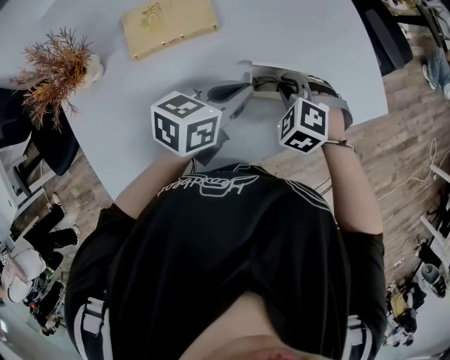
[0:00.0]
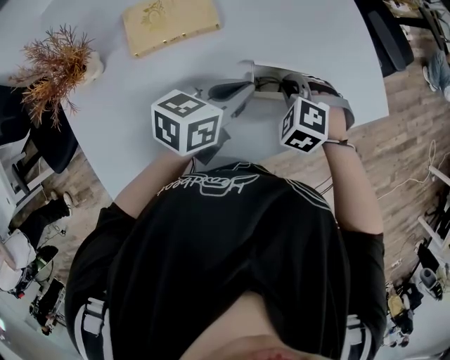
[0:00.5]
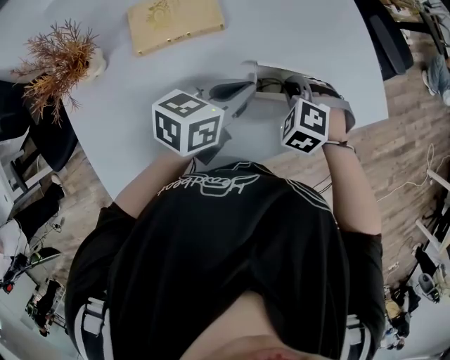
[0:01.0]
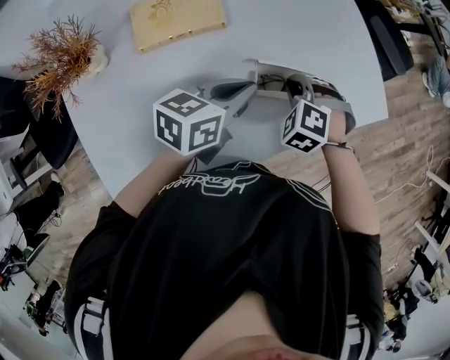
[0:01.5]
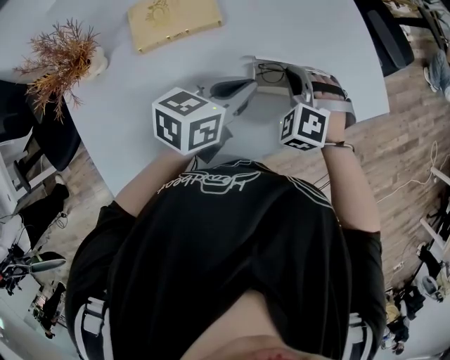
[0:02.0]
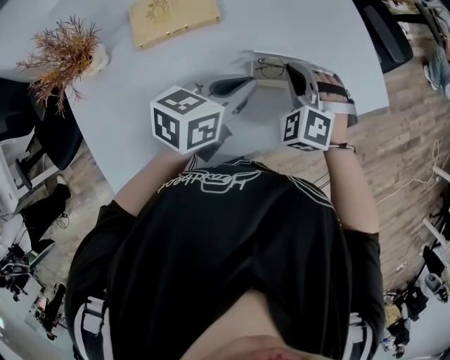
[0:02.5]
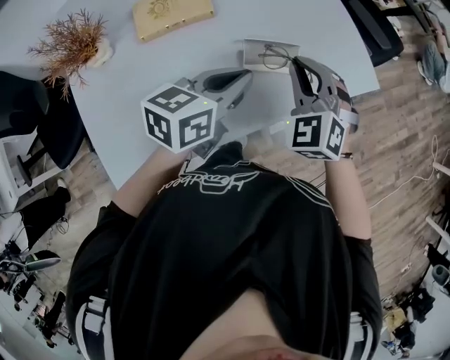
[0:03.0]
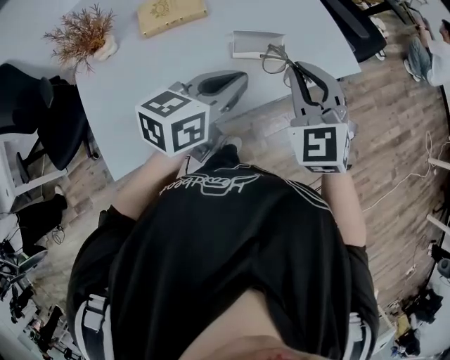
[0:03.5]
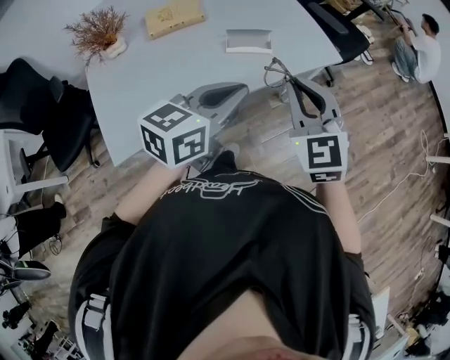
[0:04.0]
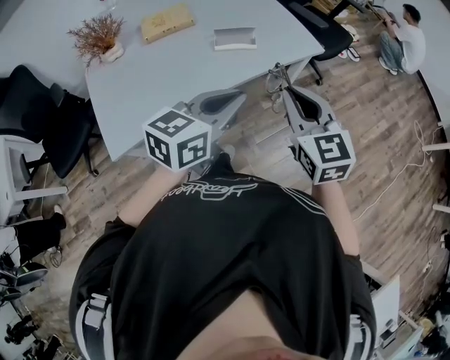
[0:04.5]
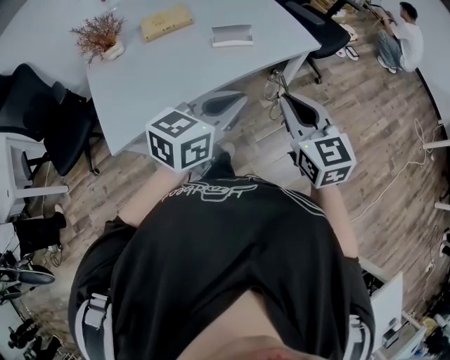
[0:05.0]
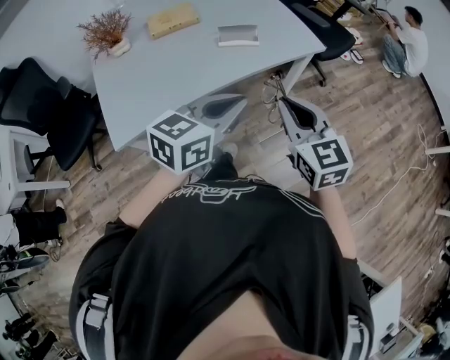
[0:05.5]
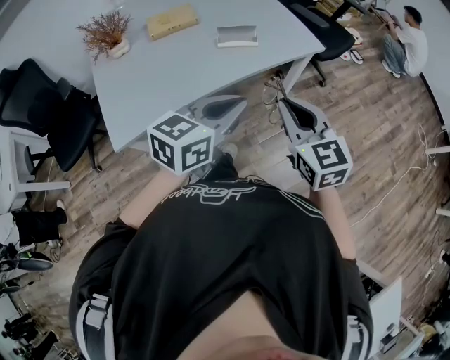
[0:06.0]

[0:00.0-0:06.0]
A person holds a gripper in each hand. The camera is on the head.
0:00.0 to 0:02.0: The grippers move only a little.
0:02.0 to 0:04.0: Both grippers travel together backward, upward and to the right, roughly 35 cm. The left gripper changes its angle by approximately 20 degrees. Meanwhile the right gripper rolls clockwise, seen from behind, by about 50 degrees.
0:04.0 to 0:06.0: The grippers both shift backward and to the right by roughly 15 cm. The right gripper turns by about 20 degrees.

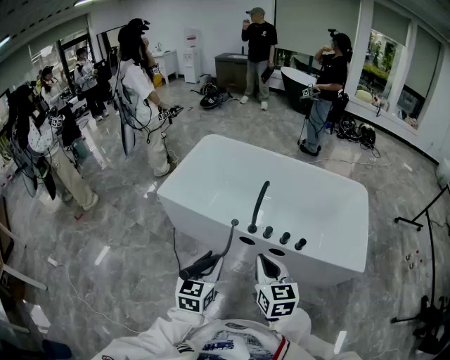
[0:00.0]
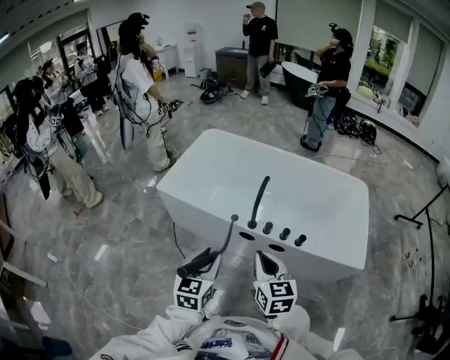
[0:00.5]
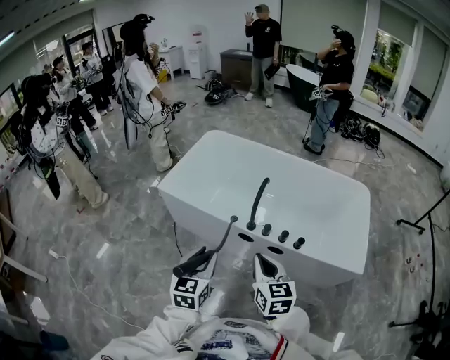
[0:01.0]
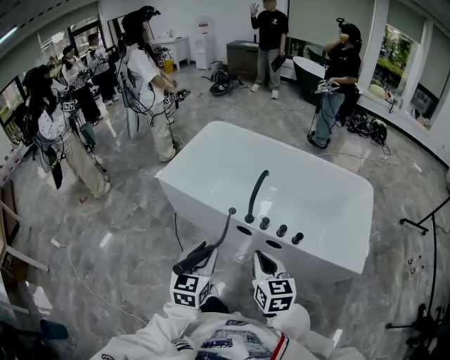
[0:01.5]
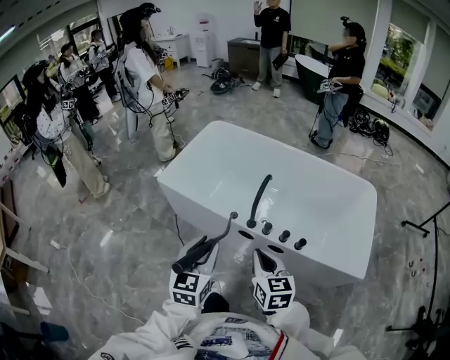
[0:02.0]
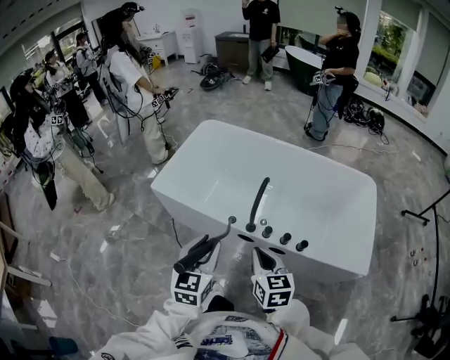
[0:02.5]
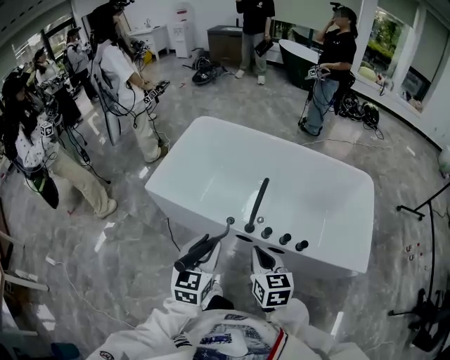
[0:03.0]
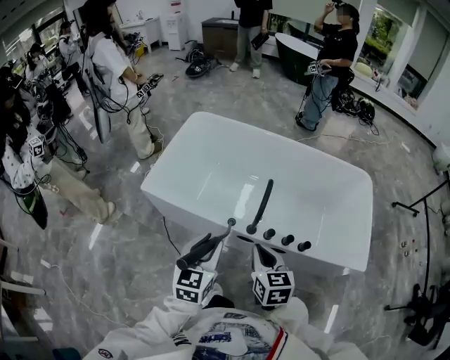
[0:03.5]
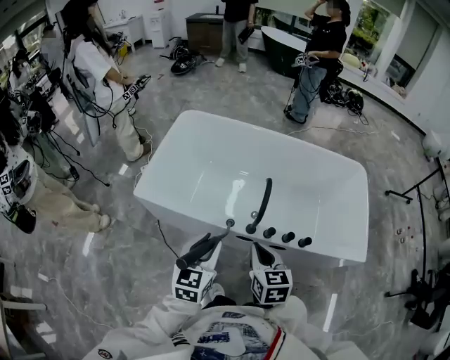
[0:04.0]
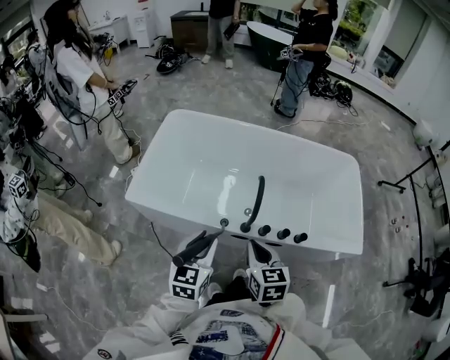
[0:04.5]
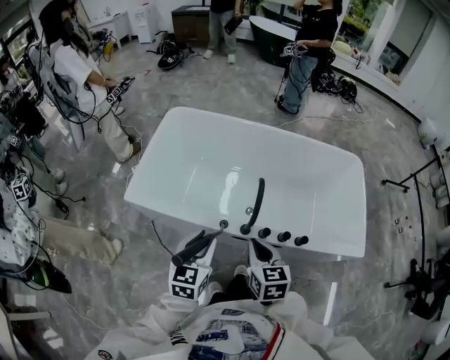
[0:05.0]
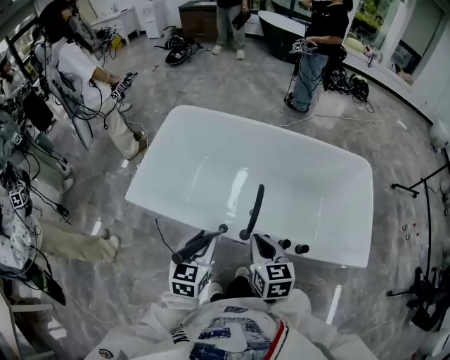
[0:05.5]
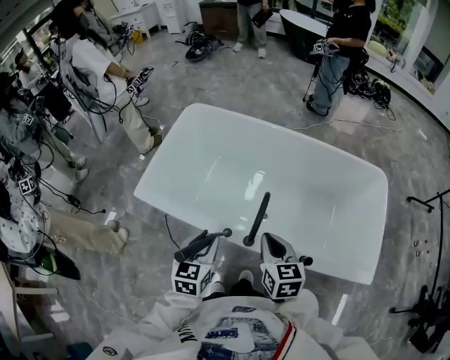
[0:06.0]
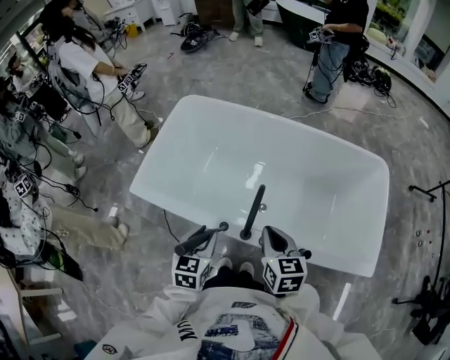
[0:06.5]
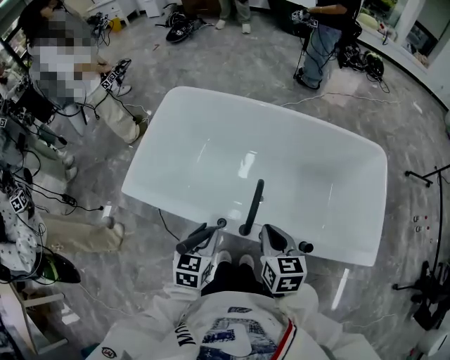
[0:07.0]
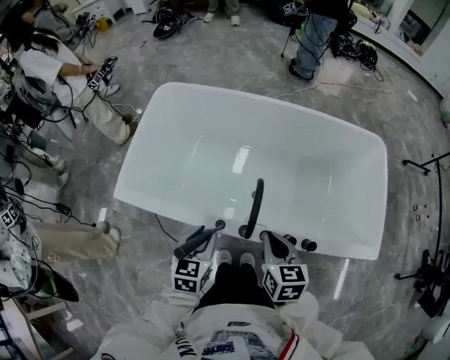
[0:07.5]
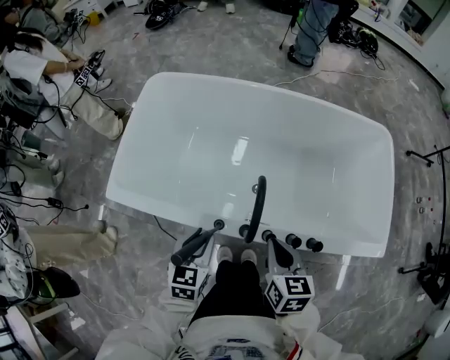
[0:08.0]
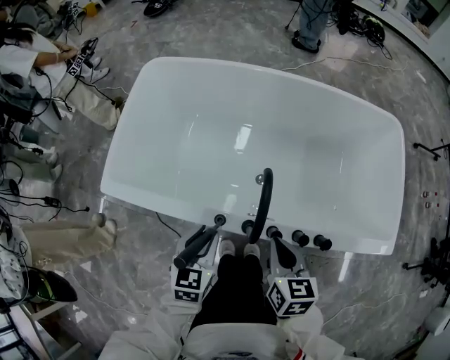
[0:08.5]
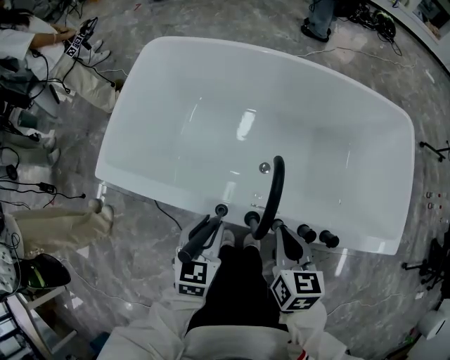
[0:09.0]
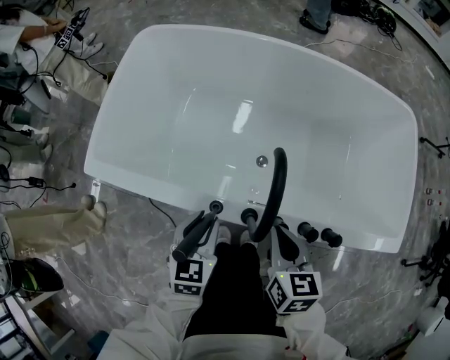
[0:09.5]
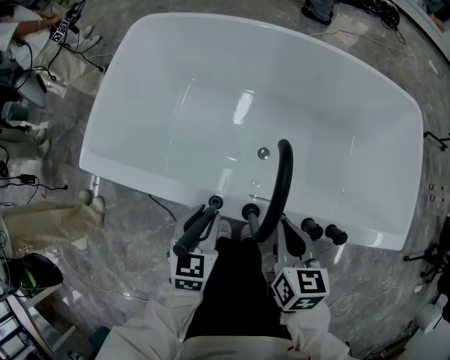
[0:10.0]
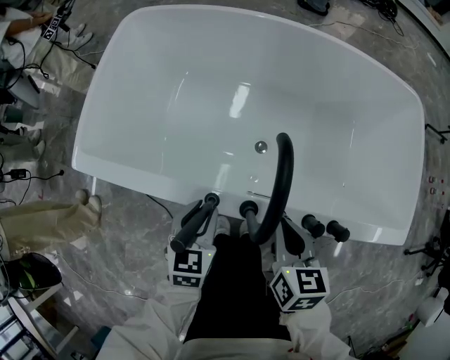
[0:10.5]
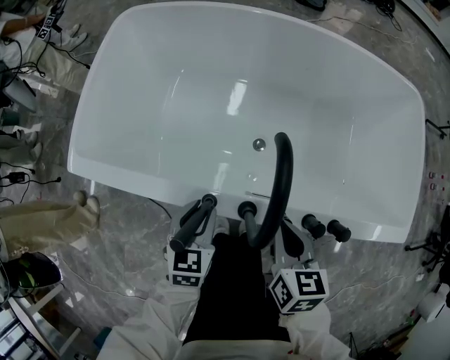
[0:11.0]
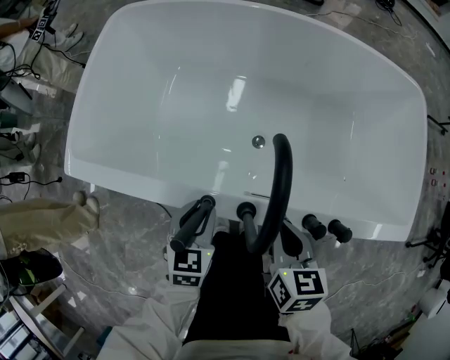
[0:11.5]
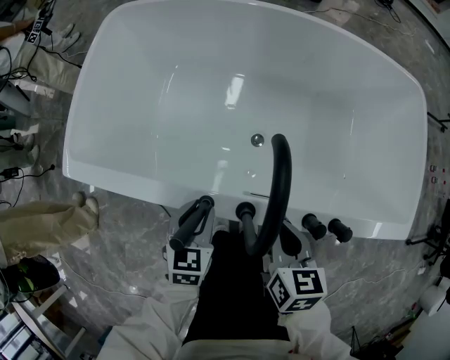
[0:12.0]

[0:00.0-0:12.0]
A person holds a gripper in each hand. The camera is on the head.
0:00.0 to 0:02.0: The right gripper ends up some 5 cm from where it was. The left gripper changes place by approximately 5 cm.
0:02.0 to 0:04.0: The left gripper heads forward, downward and to the left, covering some 15 cm, while the right gripper moves forward and to the left, roughly 15 cm.
0:04.0 to 0:06.0: The right gripper heads forward and to the right, covering about 15 cm, while the left gripper goes roughly 10 cm forward and downward.
0:06.0 to 0:08.0: Both grippers move downward, some 10 cm.
0:08.0 to 0:10.0: Both grippers move downward, about 10 cm.
0:10.0 to 0:12.0: The left gripper moves downward, approximately 5 cm.

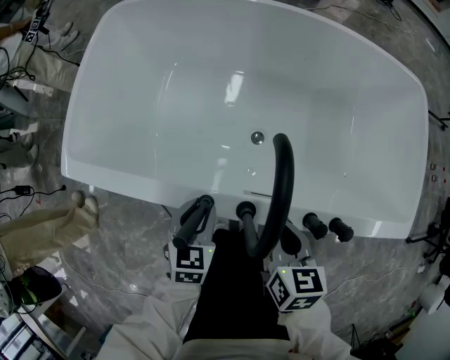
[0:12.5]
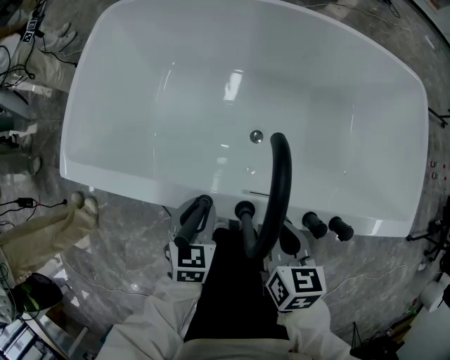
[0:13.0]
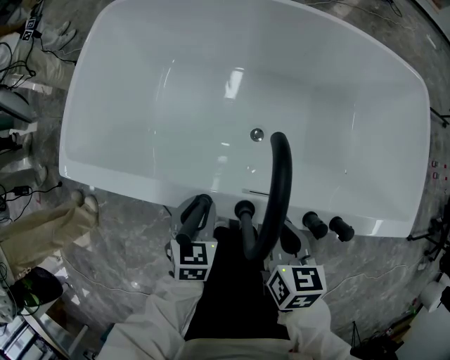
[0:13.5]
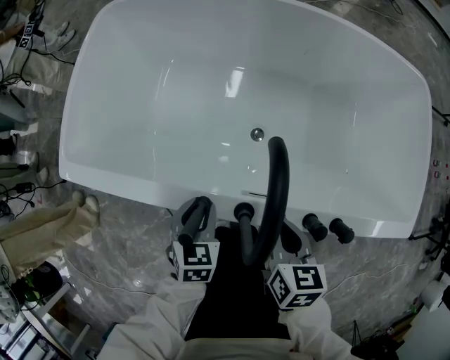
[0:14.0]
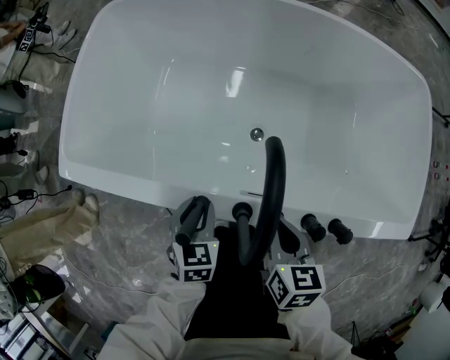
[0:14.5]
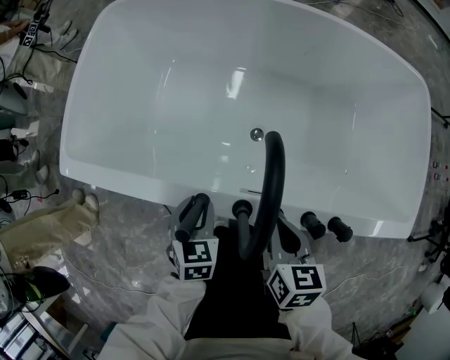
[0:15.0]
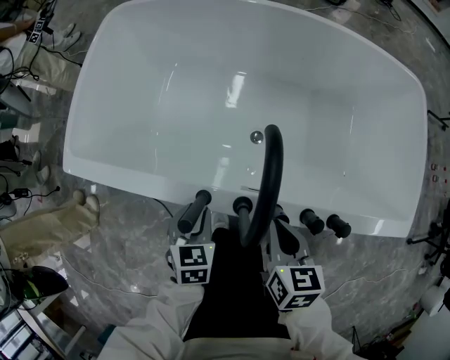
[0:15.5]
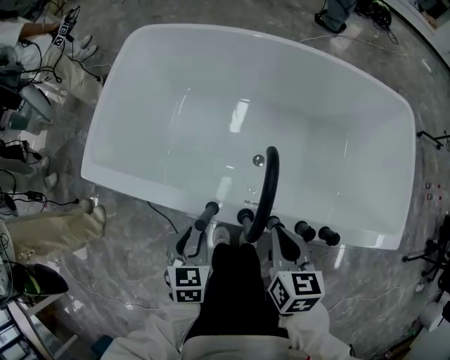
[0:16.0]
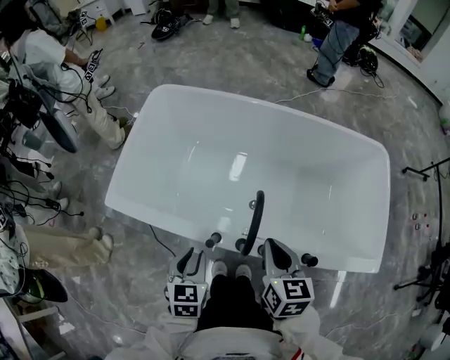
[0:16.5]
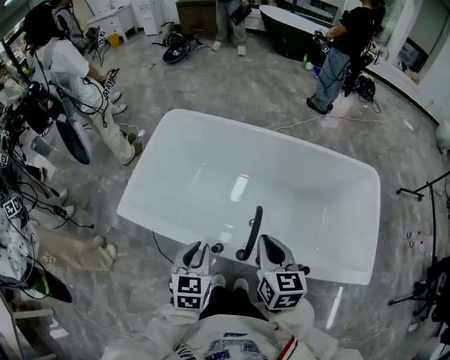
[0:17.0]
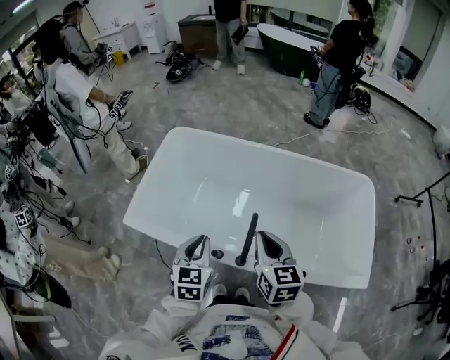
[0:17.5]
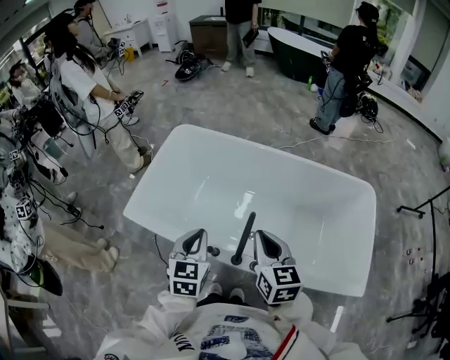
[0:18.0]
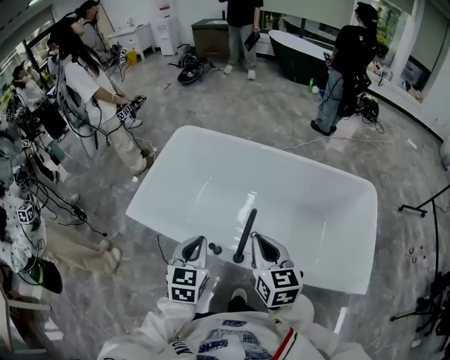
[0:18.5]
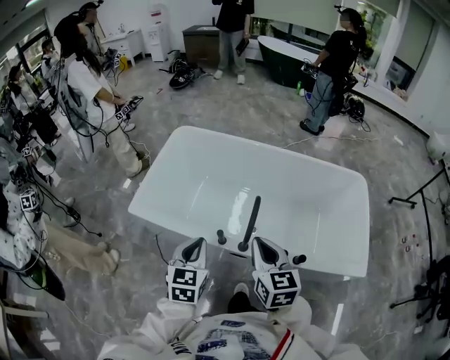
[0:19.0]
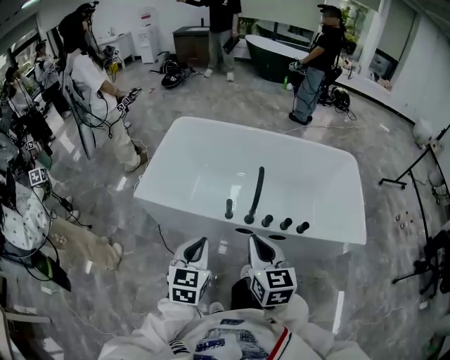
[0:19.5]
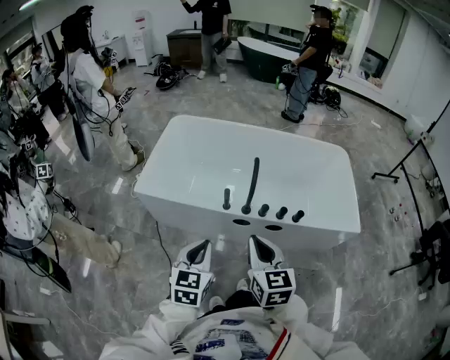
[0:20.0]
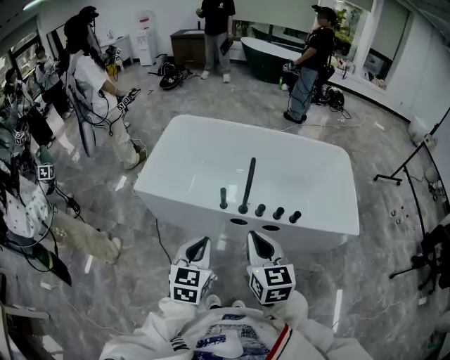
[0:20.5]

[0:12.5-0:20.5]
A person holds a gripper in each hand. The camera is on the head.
0:12.5 to 0:14.5: The grippers move only a little.
0:14.5 to 0:16.5: The grippers both shift upward by roughly 20 cm.
0:16.5 to 0:18.5: Both grippers move upward, roughly 15 cm. The left gripper closes up.
0:18.5 to 0:20.5: The grippers both shift backward by roughly 25 cm.

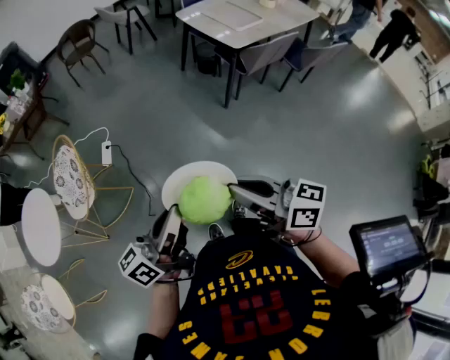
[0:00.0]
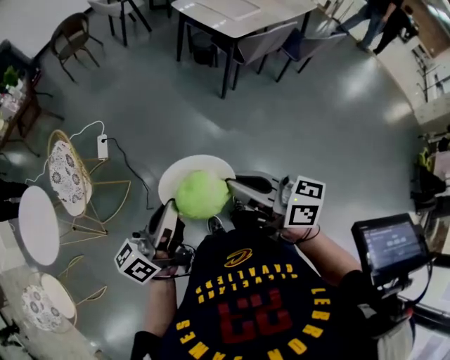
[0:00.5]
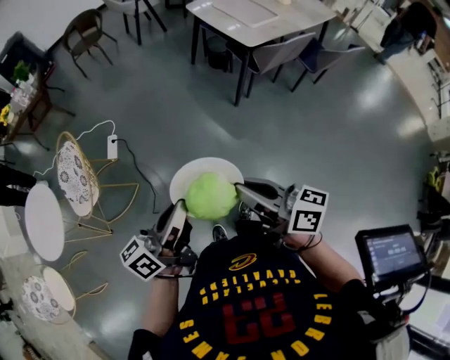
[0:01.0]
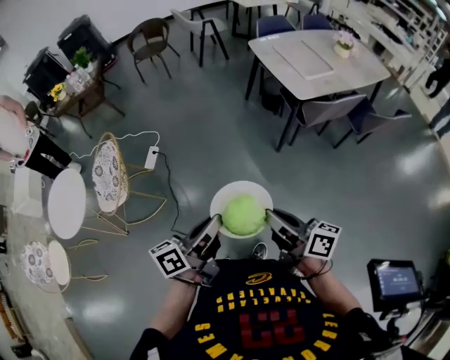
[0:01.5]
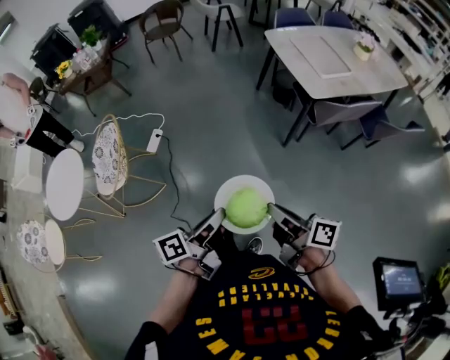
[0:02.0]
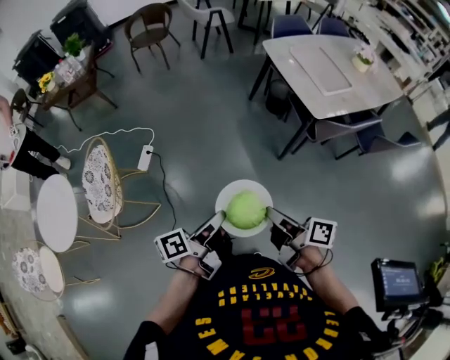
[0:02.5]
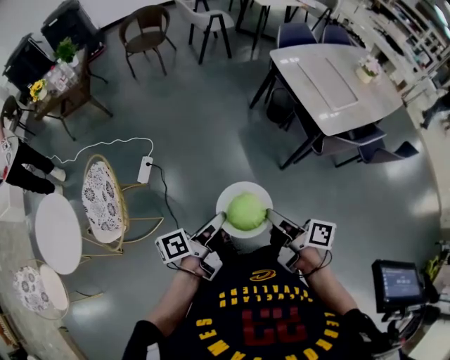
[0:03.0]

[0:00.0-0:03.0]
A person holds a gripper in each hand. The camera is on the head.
0:00.0 to 0:01.5: The right gripper moves some 20 cm.
0:01.5 to 0:03.0: The right gripper moves roughly 25 cm, and rotates approximately 20 degrees.
